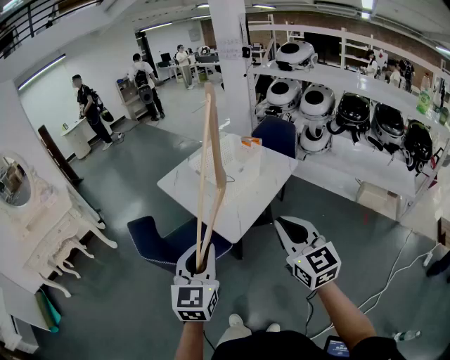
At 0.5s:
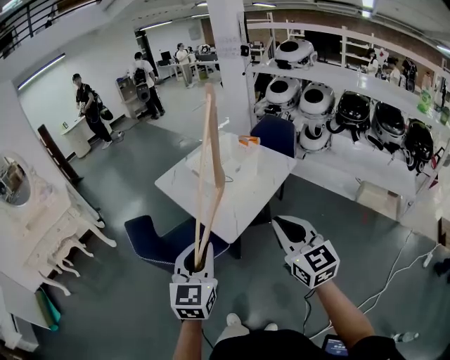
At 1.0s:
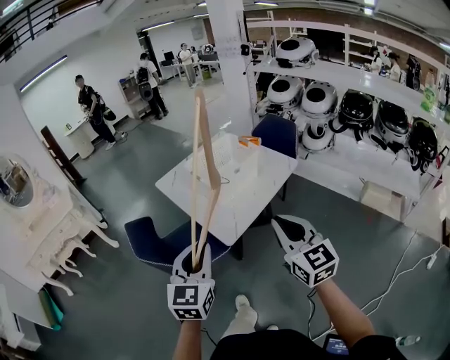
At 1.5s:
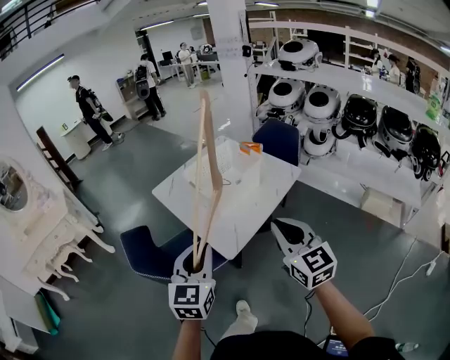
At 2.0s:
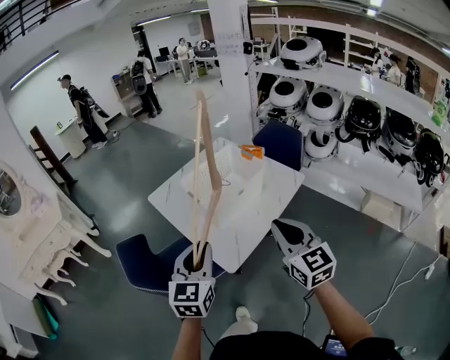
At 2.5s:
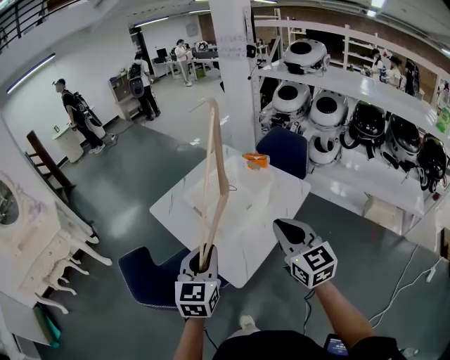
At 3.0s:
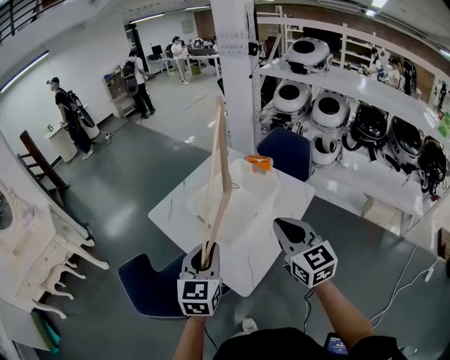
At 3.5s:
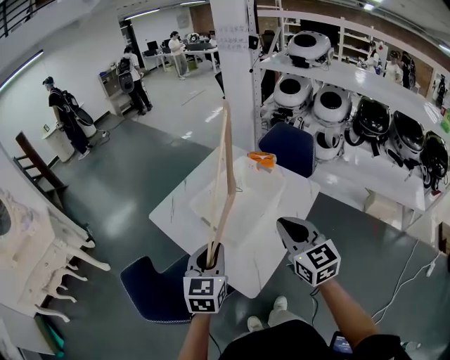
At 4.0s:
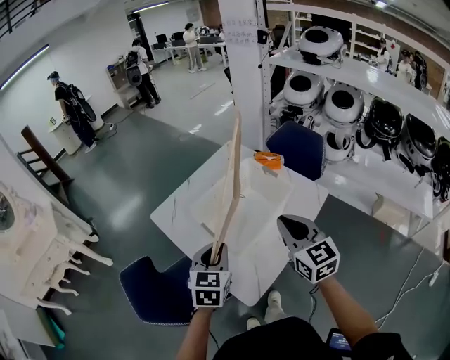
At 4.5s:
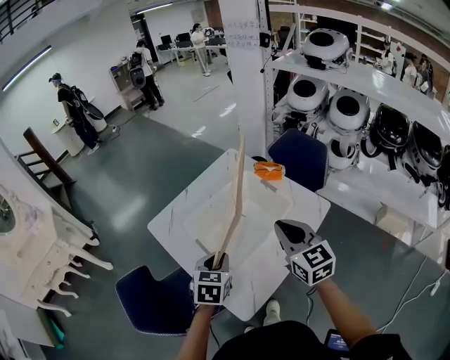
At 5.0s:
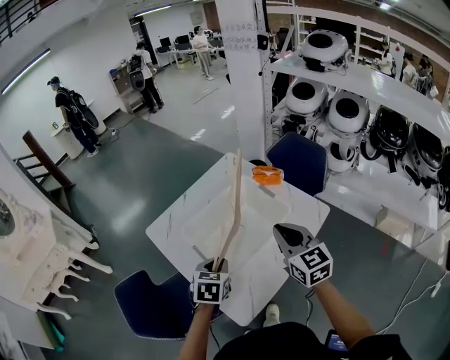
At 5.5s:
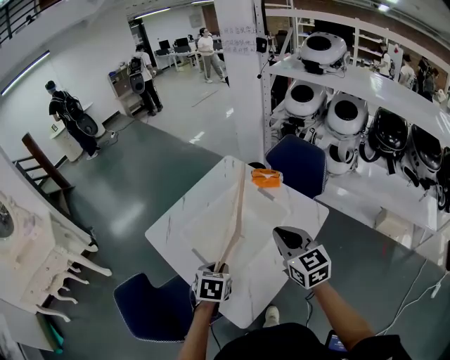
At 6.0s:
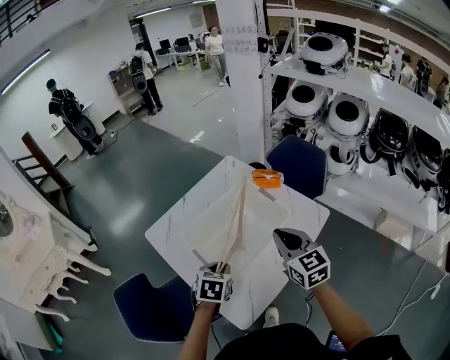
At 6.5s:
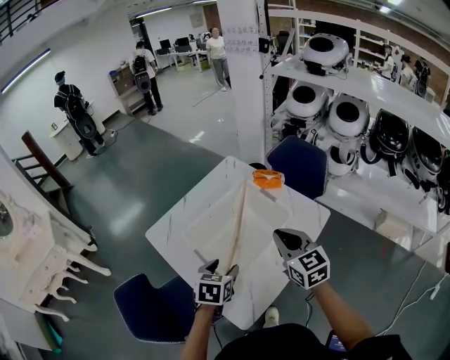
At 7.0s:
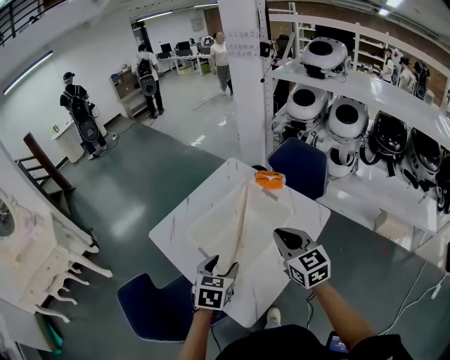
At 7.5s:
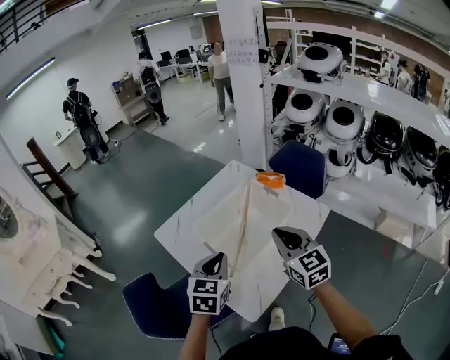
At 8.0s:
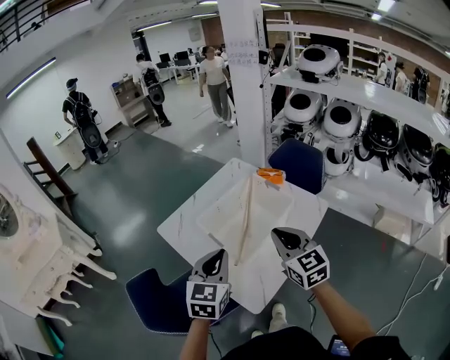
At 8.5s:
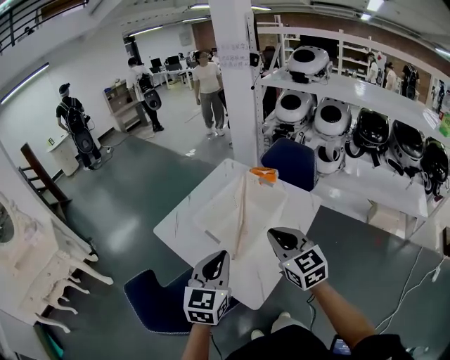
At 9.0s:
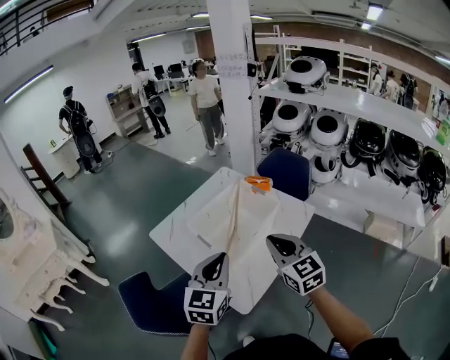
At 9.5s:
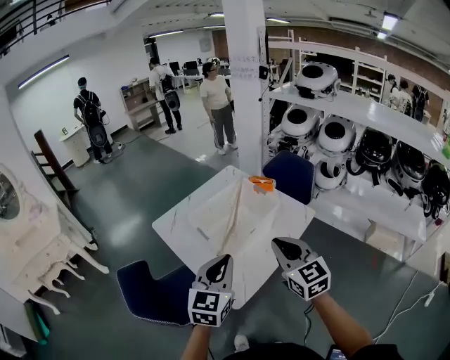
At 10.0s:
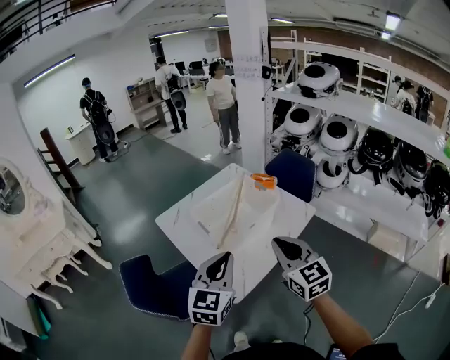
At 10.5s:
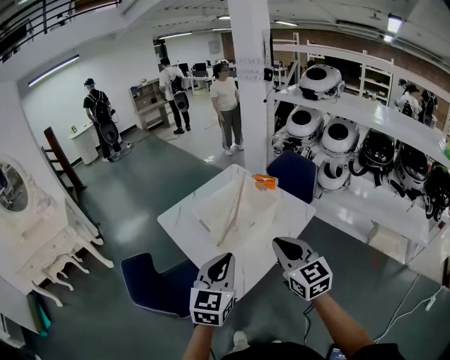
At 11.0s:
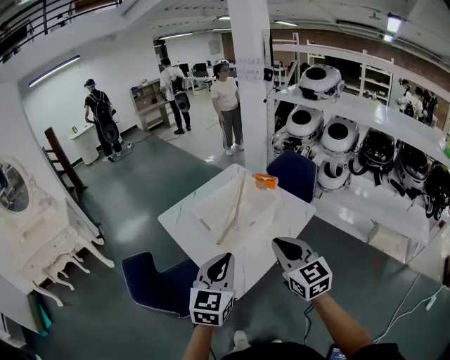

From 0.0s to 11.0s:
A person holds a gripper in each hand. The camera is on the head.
From 0.0s to 2.0s: Both grippers travel together forward, about 15 cm.
From 2.0s to 3.5s: Both grippers travel together forward, roughly 15 cm.
From 3.5s to 5.5s: The right gripper goes about 15 cm forward and downward; the left gripper goes some 15 cm downward and forward, and tips its fingers downward by approximately 30 degrees.
From 5.5s to 7.5s: The left gripper goes roughly 10 cm upward, rotates roughly 30 degrees, and opens, then closes once more; the right gripper ends up some 5 cm from where it was.
From 7.5s to 9.0s: The right gripper is displaced backward by some 10 cm. The left gripper goes approximately 10 cm backward and upward.
From 9.0s to 11.0s: The grippers both shift backward by roughly 10 cm.

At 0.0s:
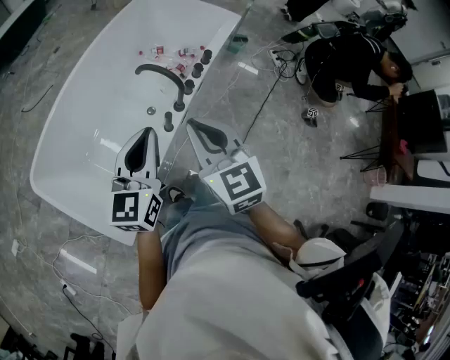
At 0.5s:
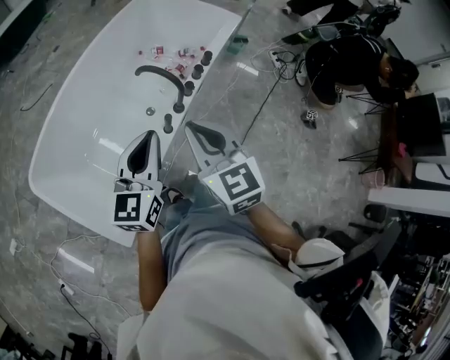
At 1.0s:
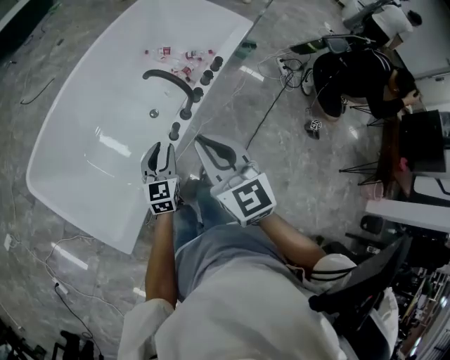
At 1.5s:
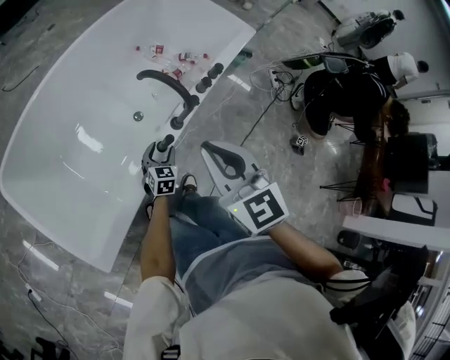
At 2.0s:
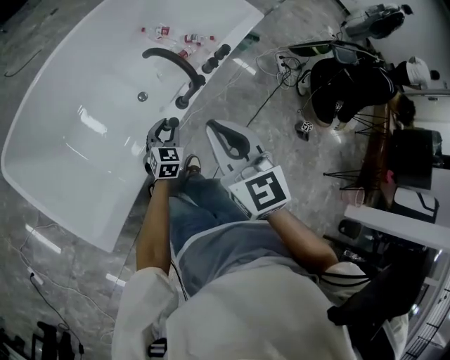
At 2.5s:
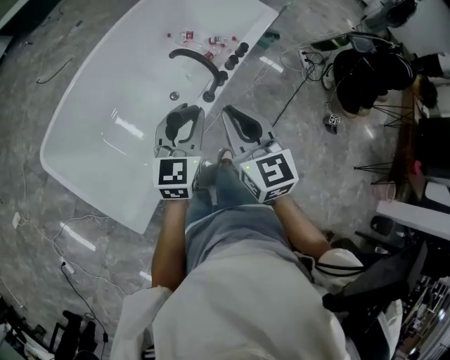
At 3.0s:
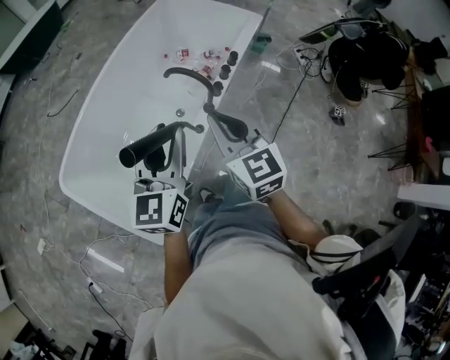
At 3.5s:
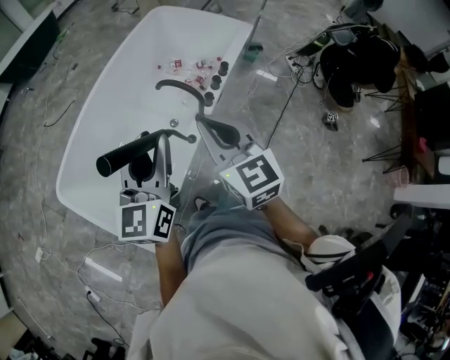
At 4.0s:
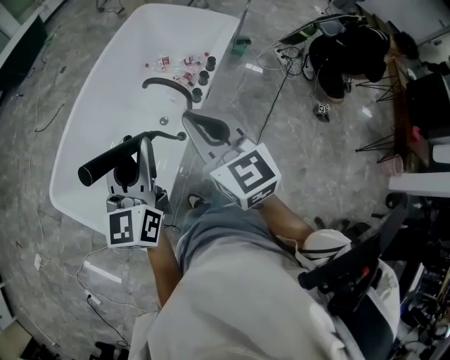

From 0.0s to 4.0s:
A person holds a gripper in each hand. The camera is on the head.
From 0.0s to 2.0s: The right gripper shifts roughly 20 cm downward and forward; the left gripper heads downward and forward, covering about 50 cm, rotates some 30 degrees, and opens its fingers.
From 2.0s to 4.0s: The right gripper goes approximately 25 cm upward and backward. The left gripper shifts about 50 cm upward, and rotates about 30 degrees.

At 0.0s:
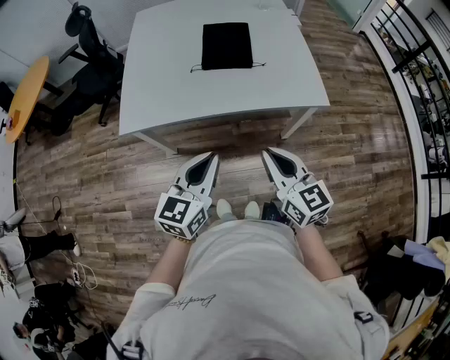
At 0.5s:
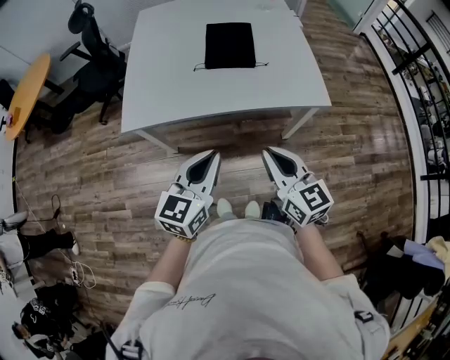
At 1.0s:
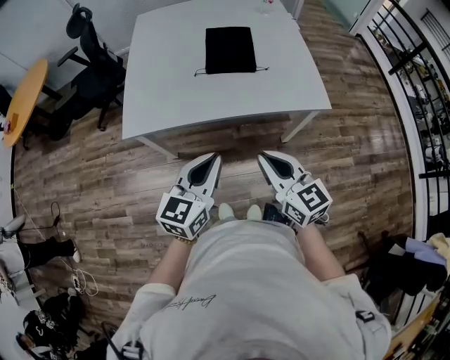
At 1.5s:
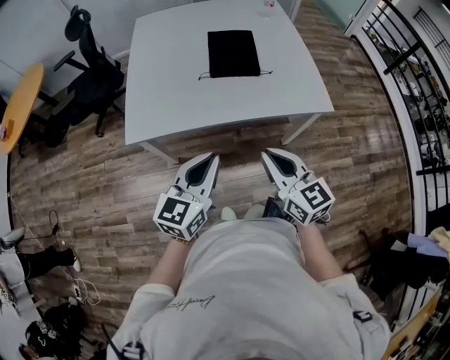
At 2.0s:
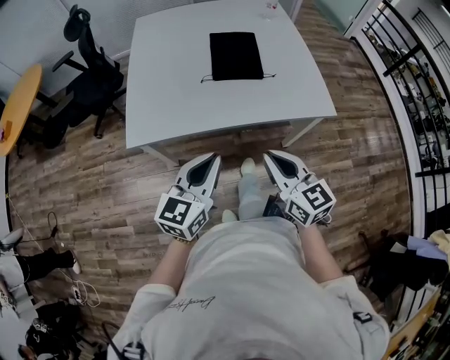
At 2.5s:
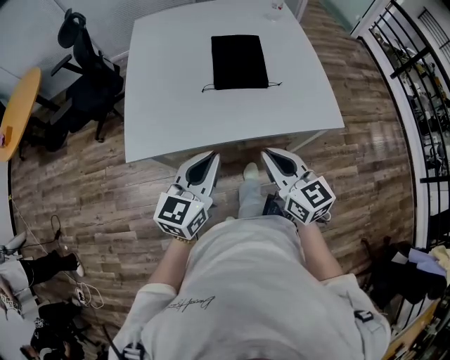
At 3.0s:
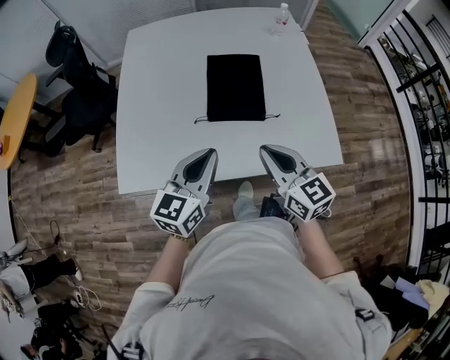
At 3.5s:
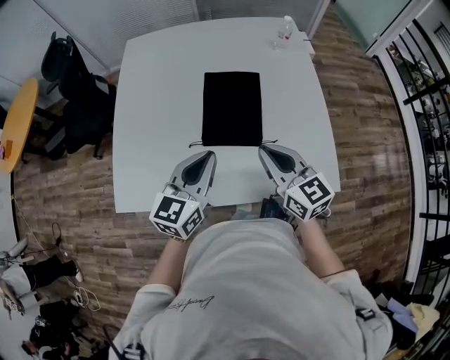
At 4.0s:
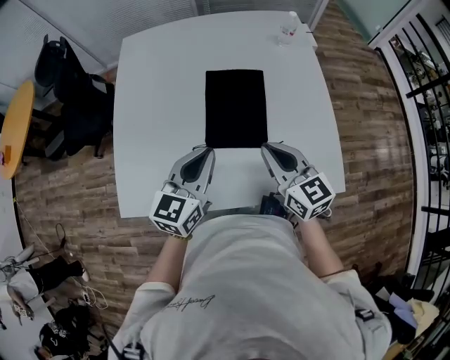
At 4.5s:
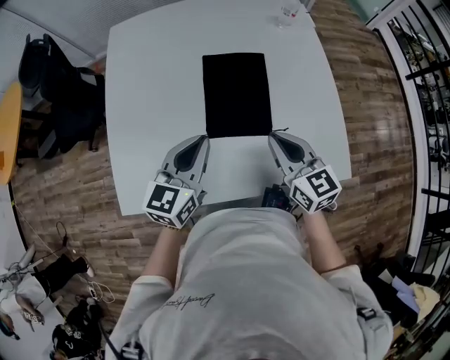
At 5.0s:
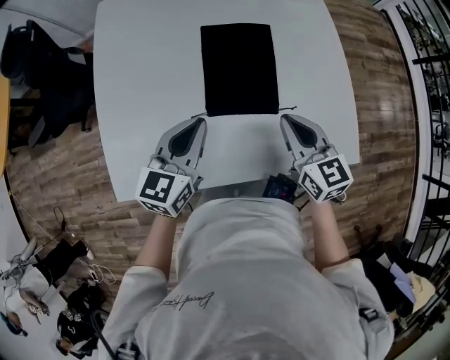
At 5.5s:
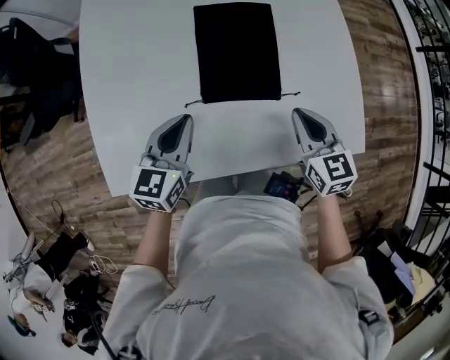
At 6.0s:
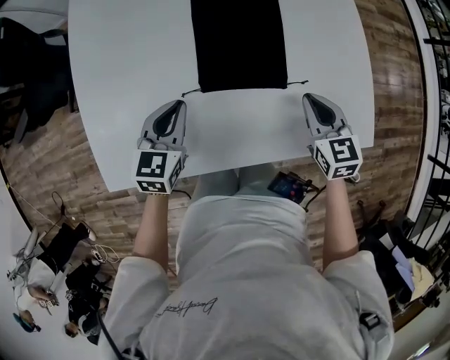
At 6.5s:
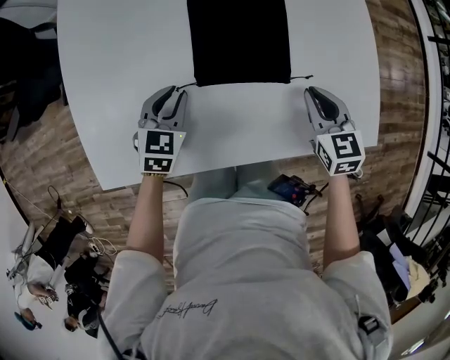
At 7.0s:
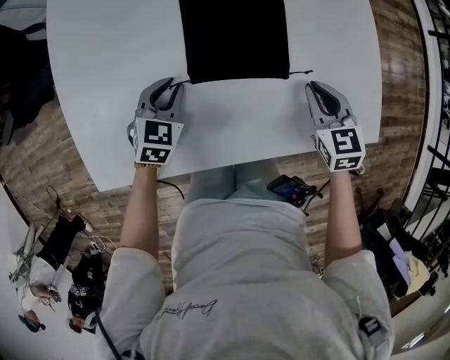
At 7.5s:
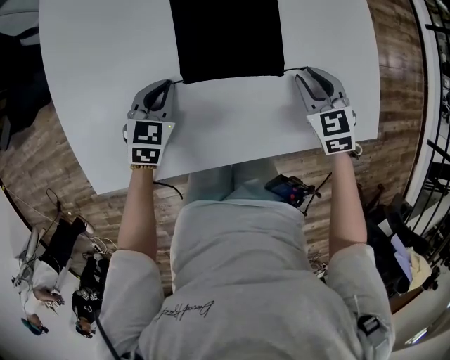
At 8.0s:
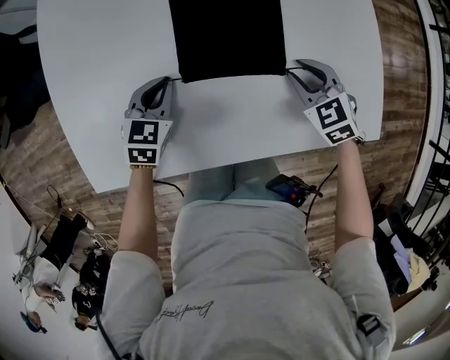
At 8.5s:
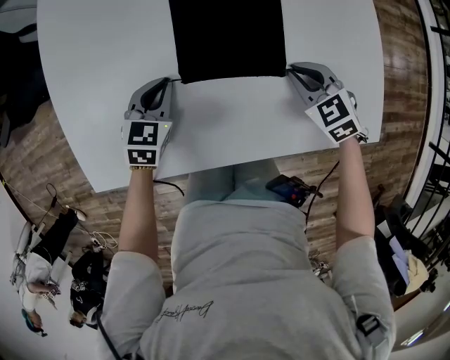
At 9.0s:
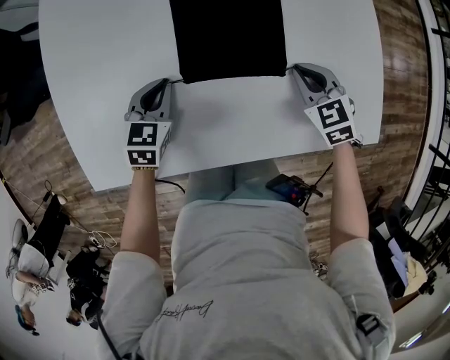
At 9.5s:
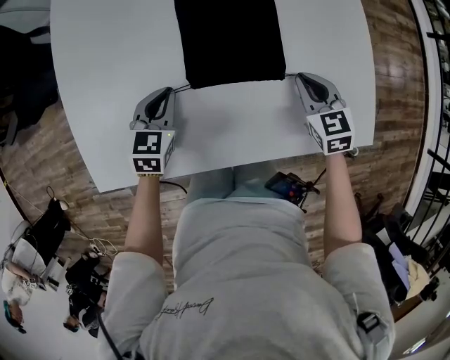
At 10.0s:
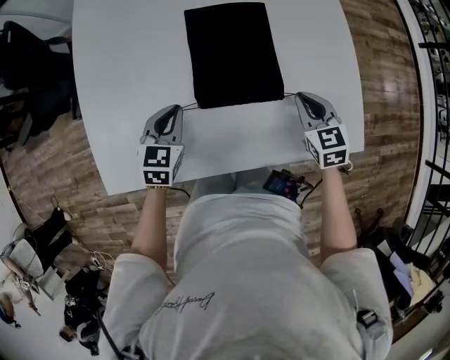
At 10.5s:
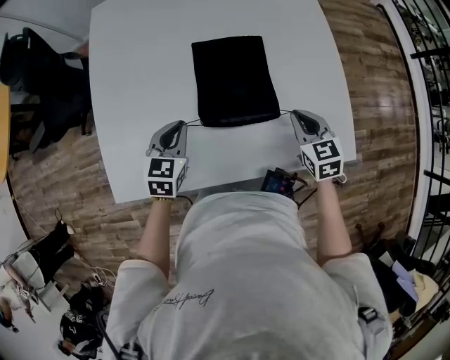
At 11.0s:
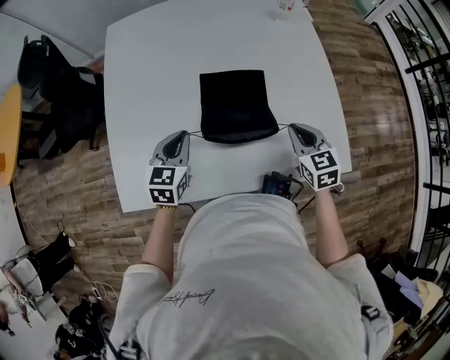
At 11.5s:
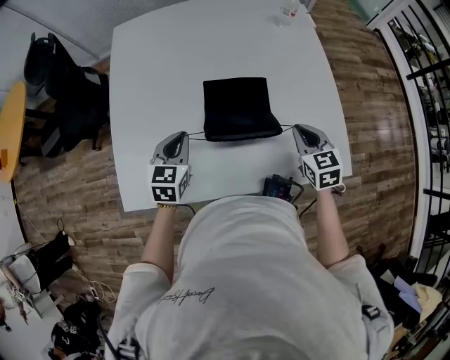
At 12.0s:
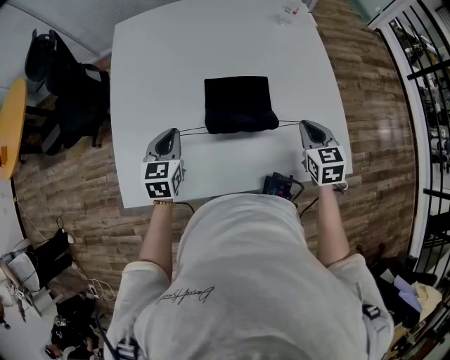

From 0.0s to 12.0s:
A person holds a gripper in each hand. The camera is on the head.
From 0.0s to 2.0s: The two grippers go about 10 cm to the left.
From 2.0s to 4.0s: Both grippers travel together forward, about 35 cm.
From 4.0s to 6.0s: The right gripper heads downward and to the right, covering approximately 20 cm, and changes its angle by roughly 30 degrees, while the left gripper is displaced downward and to the left by about 20 cm, and swivels about 20 degrees.
From 6.0s to 8.0s: Both grippers move downward, some 10 cm. The right gripper turns by approximately 30 degrees, and opens.
From 8.0s to 10.0s: Both grippers move upward, about 10 cm. The right gripper turns by roughly 20 degrees, and closes.
From 10.0s to 12.0s: Both grippers travel together upward, about 10 cm.
